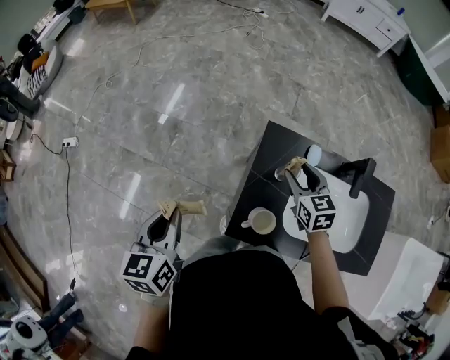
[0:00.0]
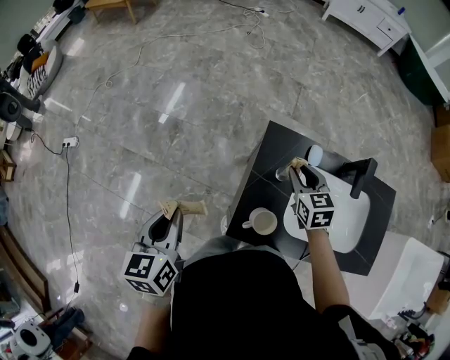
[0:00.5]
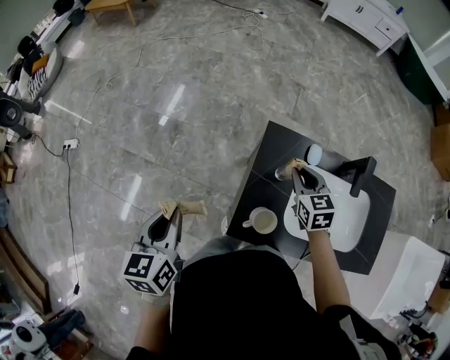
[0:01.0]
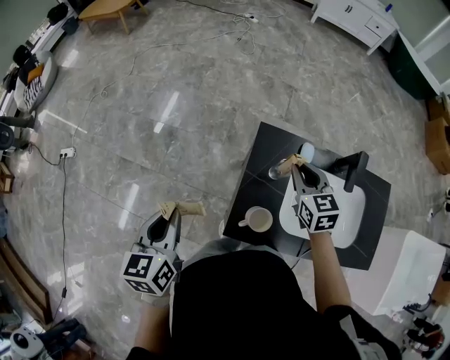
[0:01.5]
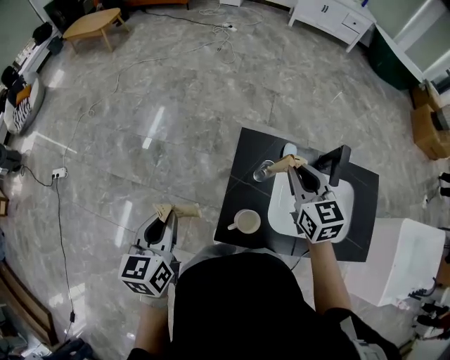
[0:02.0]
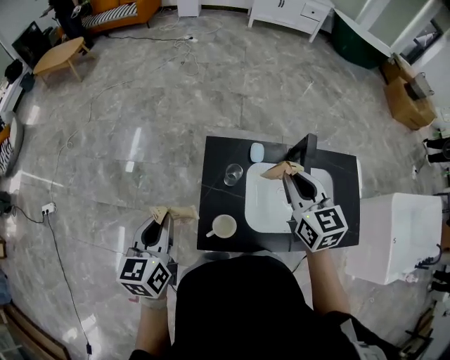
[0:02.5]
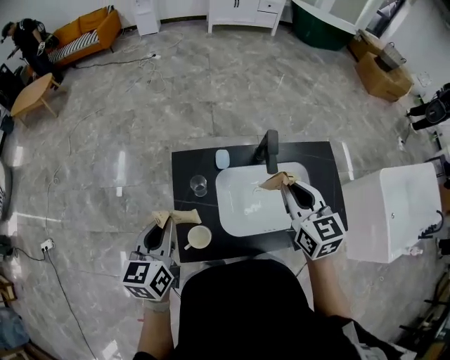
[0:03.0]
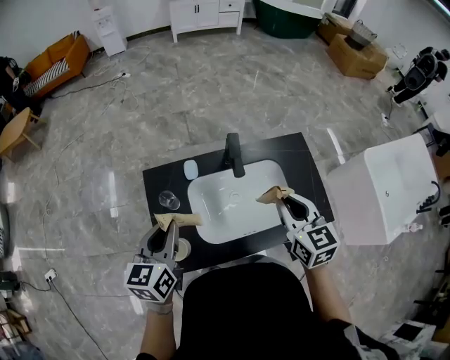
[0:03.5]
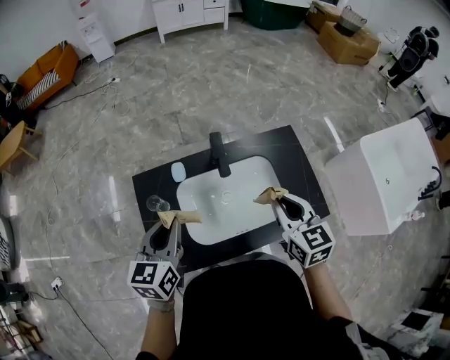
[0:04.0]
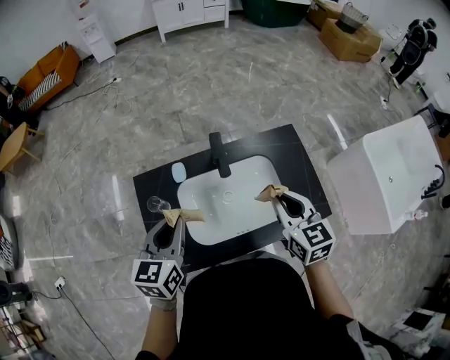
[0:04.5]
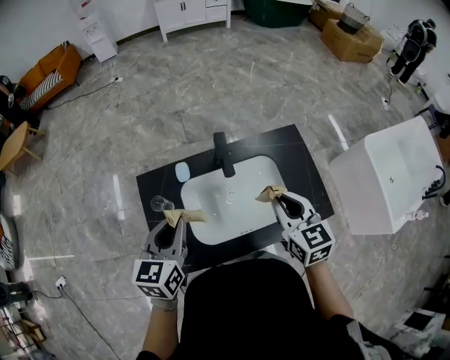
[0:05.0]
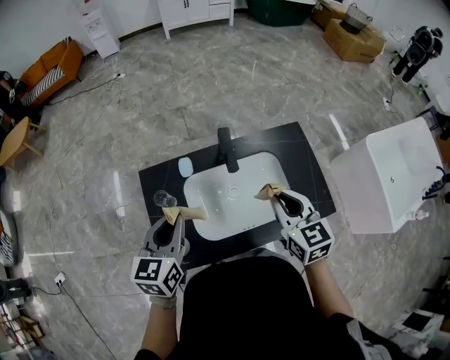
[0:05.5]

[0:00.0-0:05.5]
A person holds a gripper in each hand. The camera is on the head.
0:00.0 to 0:02.0: The right gripper goes approximately 15 cm upward, and closes its fingers.
0:02.0 to 0:03.5: The two grippers go about 30 cm to the right. The left gripper changes its angle by approximately 30 degrees. Meanwhile the right gripper changes its angle by about 20 degrees.

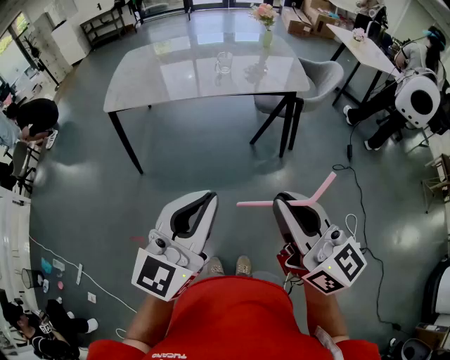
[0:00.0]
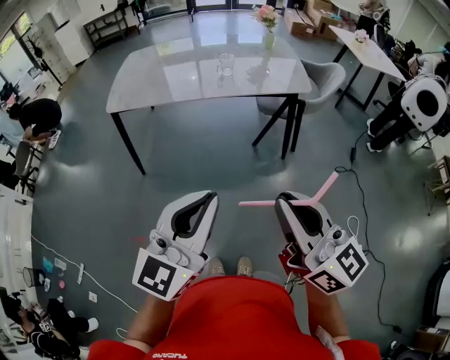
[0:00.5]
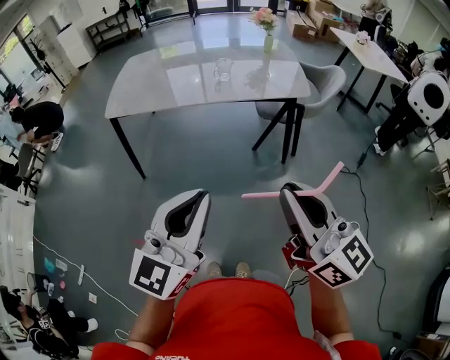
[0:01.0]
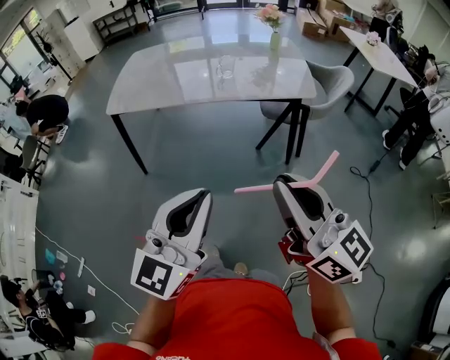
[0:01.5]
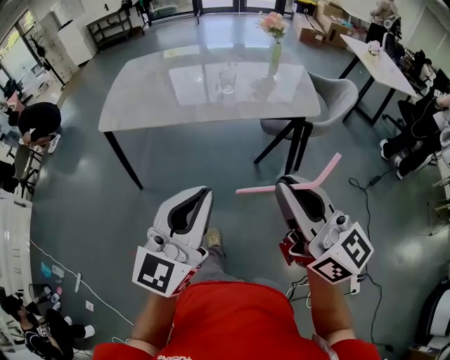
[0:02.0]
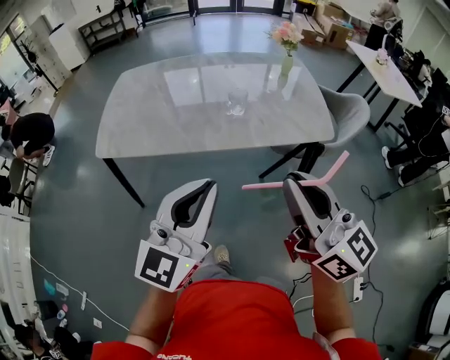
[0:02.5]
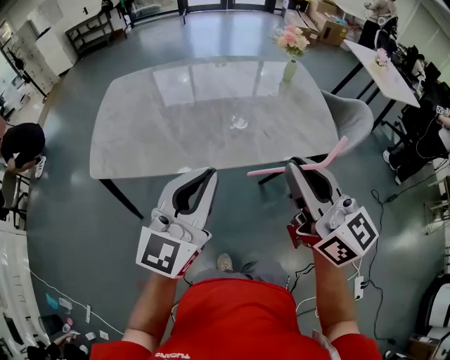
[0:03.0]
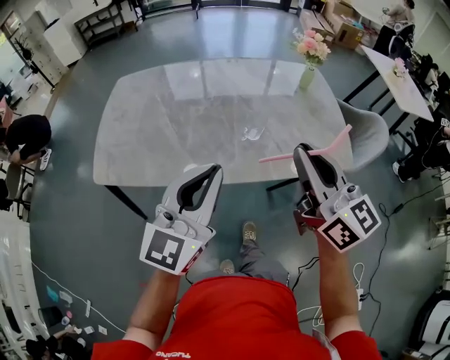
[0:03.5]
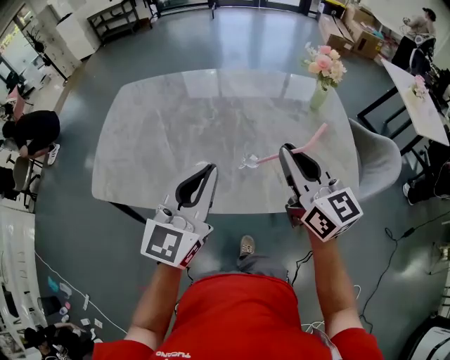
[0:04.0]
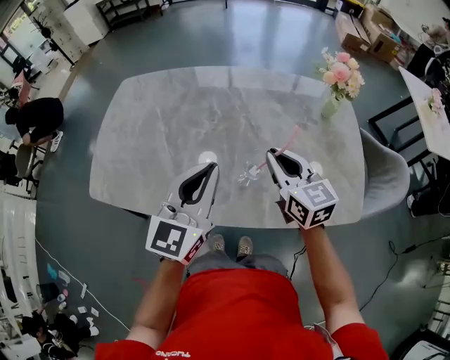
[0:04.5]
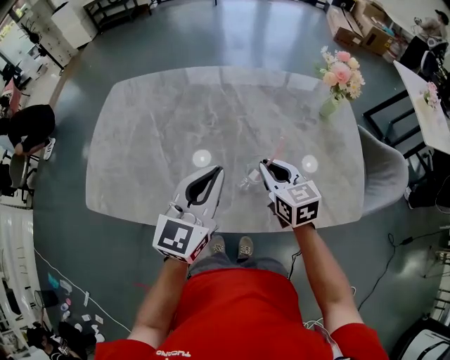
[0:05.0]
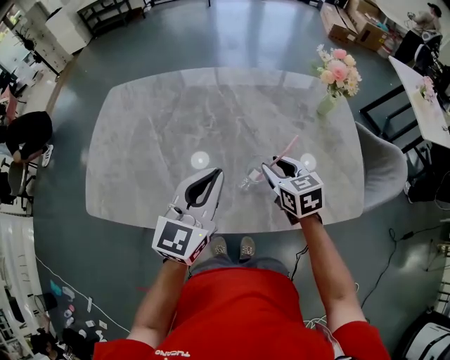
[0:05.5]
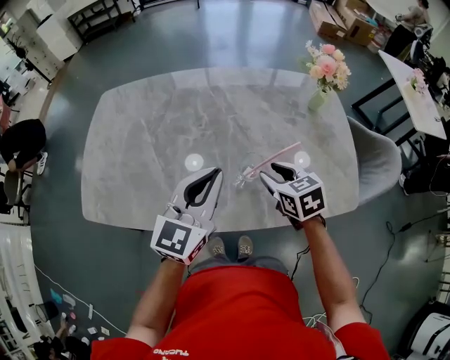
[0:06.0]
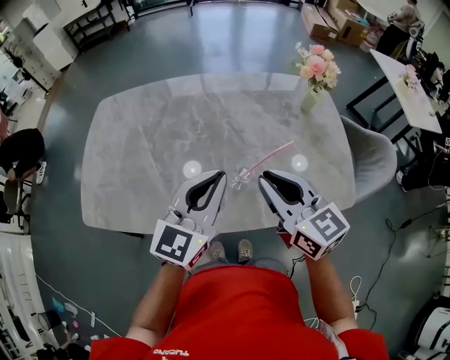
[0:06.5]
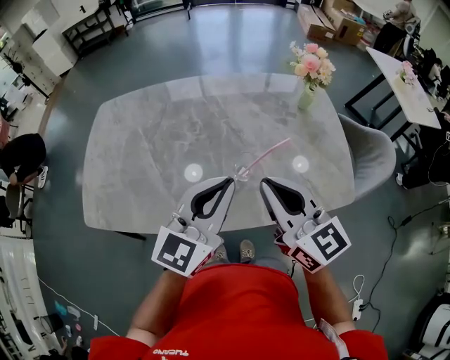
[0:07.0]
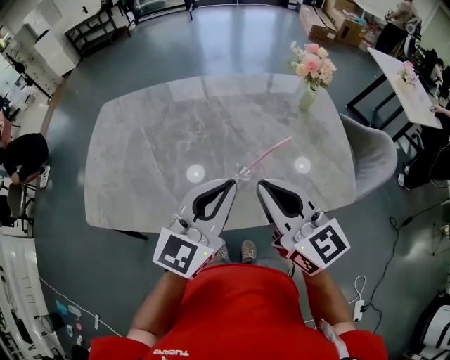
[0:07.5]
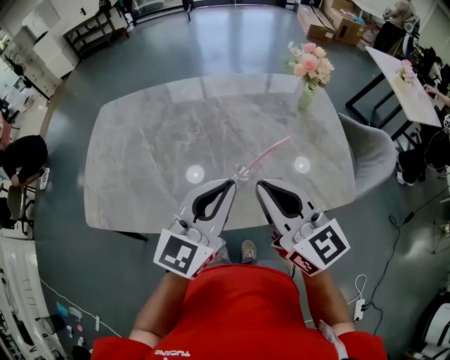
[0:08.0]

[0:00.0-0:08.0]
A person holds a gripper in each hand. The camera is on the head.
0:00.0 to 0:02.0: The two grippers go roughly 15 cm forward.
0:02.0 to 0:04.0: The pair of grippers is taken forward, some 50 cm.
0:04.0 to 0:06.0: The left gripper goes some 10 cm forward and downward; the right gripper goes roughly 20 cm downward and forward, tips its fingers downward by some 40 degrees, and opens up.
0:06.0 to 0:08.0: The left gripper shifts roughly 10 cm backward and upward; the right gripper goes roughly 20 cm upward and backward, tilts its fingers about 40 degrees upward, and closes up.

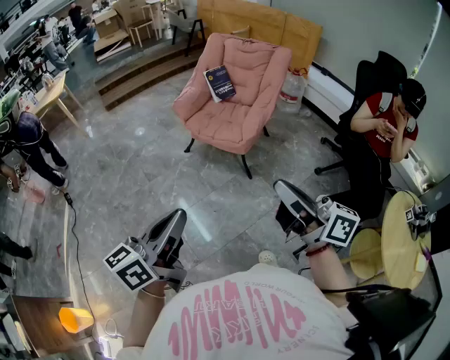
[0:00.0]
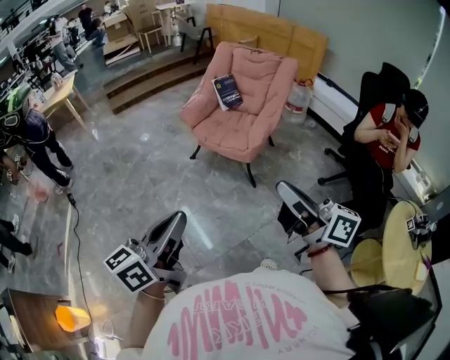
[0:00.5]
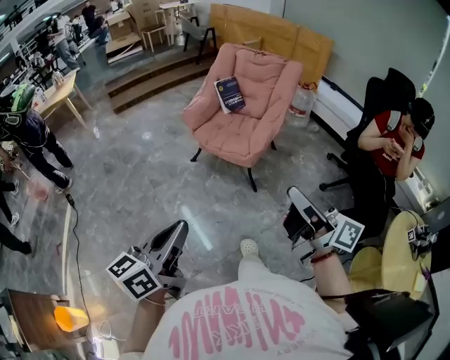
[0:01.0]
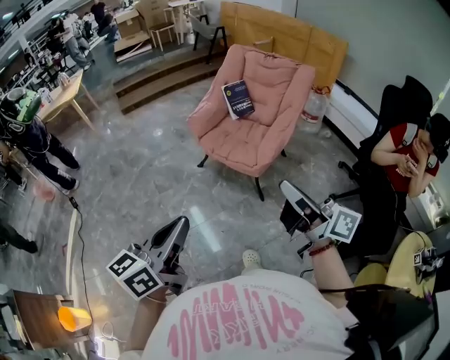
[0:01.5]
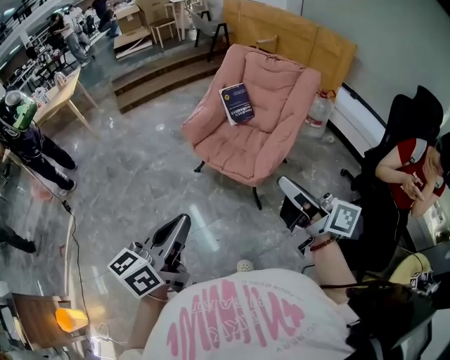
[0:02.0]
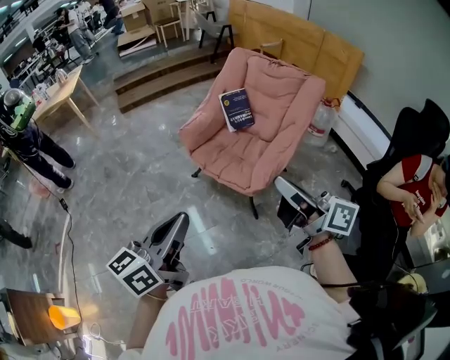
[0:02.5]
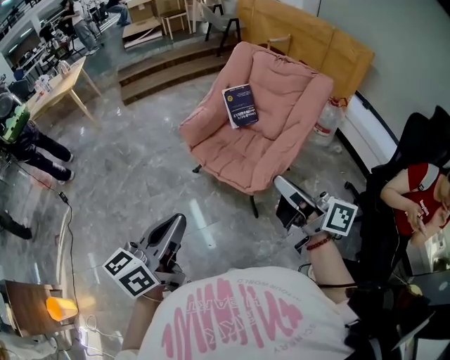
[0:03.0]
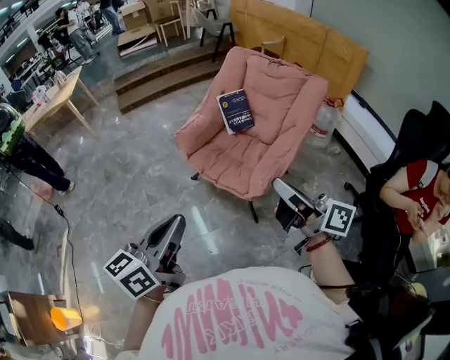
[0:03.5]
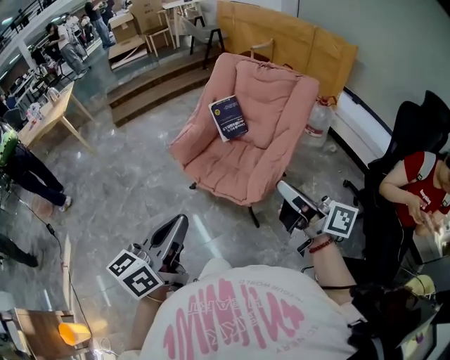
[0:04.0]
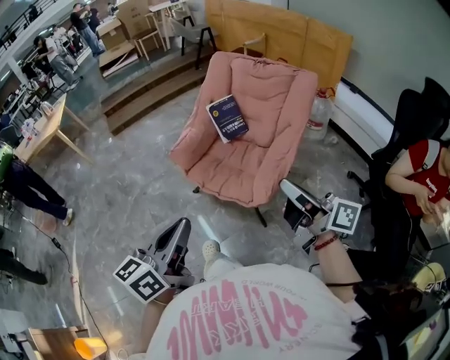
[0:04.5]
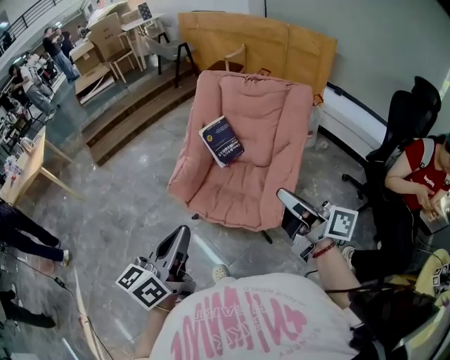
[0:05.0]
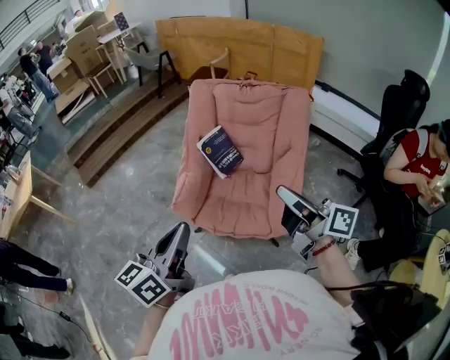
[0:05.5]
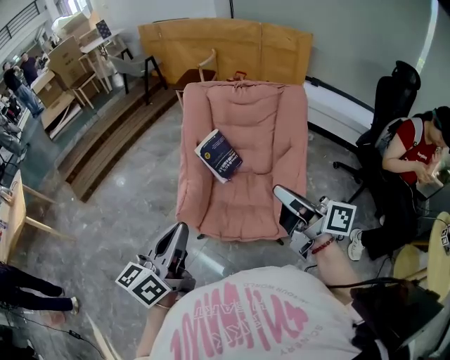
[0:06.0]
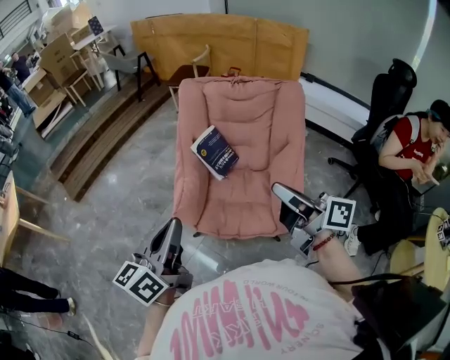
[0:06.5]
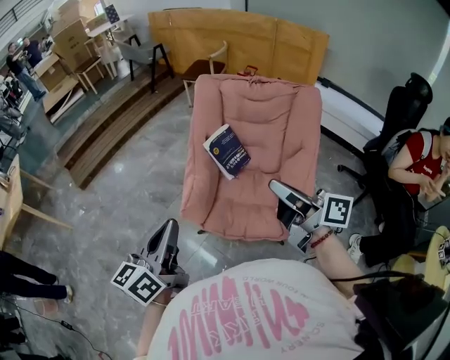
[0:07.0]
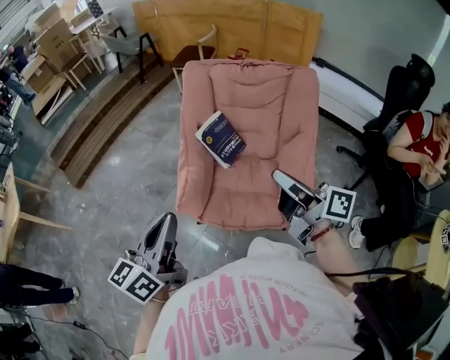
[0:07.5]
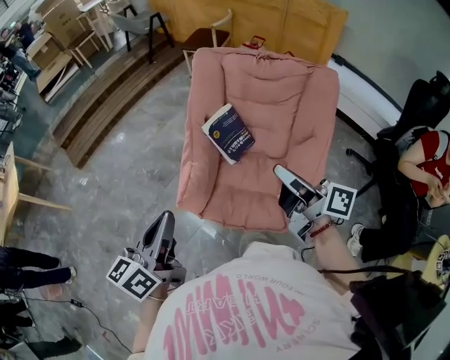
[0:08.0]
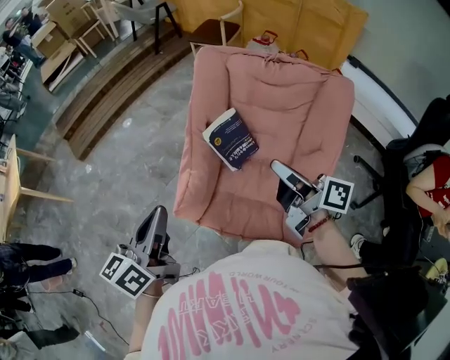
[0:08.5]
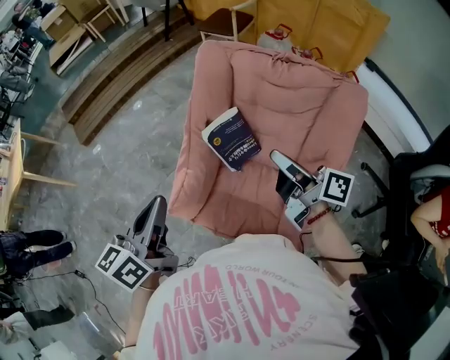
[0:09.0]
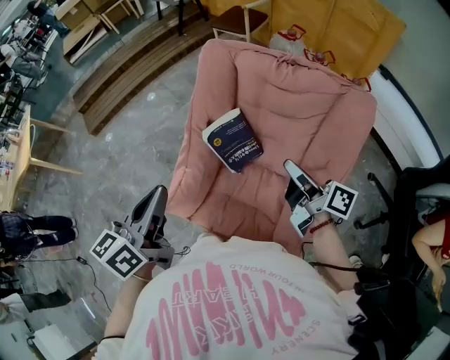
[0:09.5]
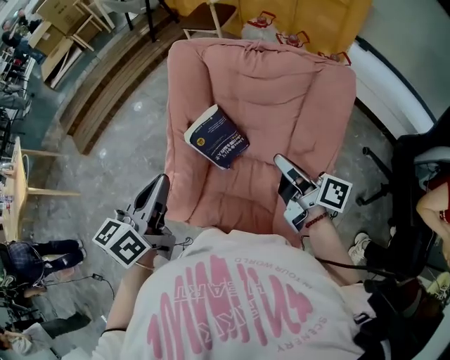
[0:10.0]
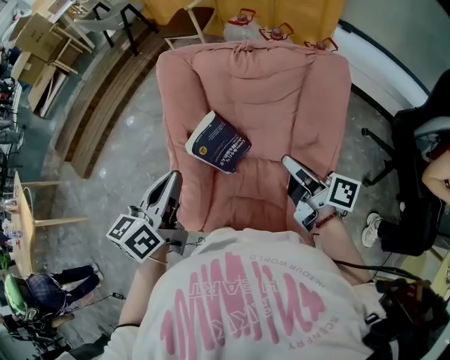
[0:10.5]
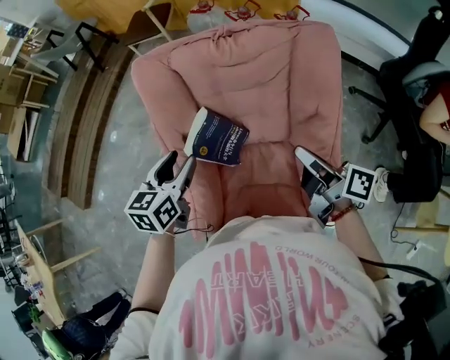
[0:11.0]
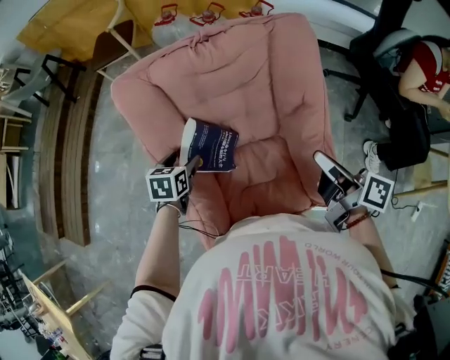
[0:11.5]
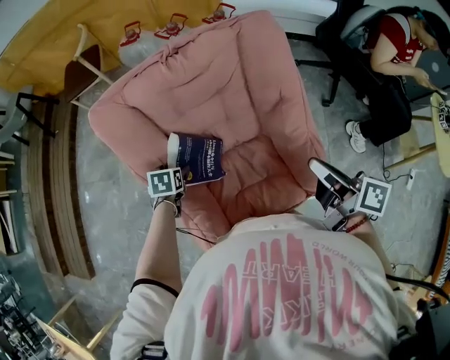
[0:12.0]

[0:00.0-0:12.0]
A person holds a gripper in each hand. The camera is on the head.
0:00.0 to 0:02.0: The grippers both shift forward by some 20 cm.
0:02.0 to 0:04.0: The two grippers go approximately 10 cm forward and to the right.
0:04.0 to 0:06.0: The grippers both shift forward and to the left by roughly 25 cm. The right gripper swivels roughly 20 degrees.
0:06.0 to 0:08.0: The left gripper goes roughly 10 cm forward, while the right gripper heads forward and downward, covering some 15 cm.
0:08.0 to 0:10.0: The right gripper heads forward, to the right and downward, covering roughly 20 cm, while the left gripper goes some 20 cm forward and to the right.
0:10.0 to 0:12.0: The right gripper ends up about 10 cm from where it was, and swivels roughly 40 degrees; the left gripper is displaced downward by about 35 cm, tips its fingers downward by roughly 50 degrees, and opens.

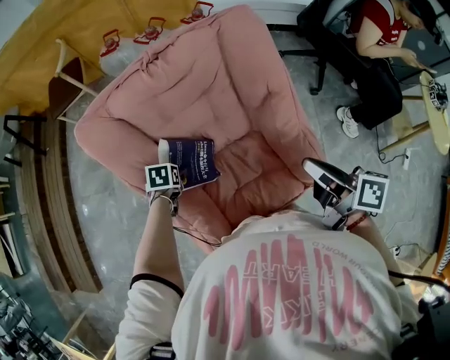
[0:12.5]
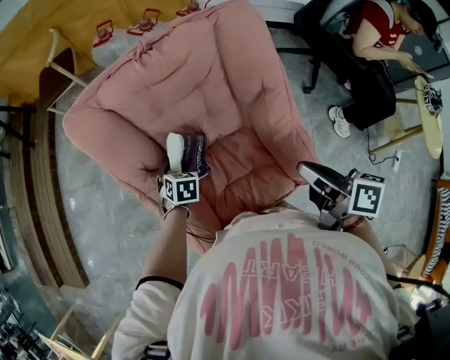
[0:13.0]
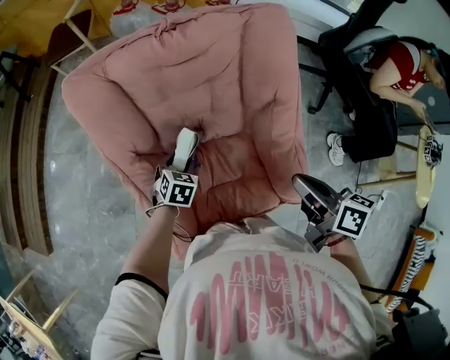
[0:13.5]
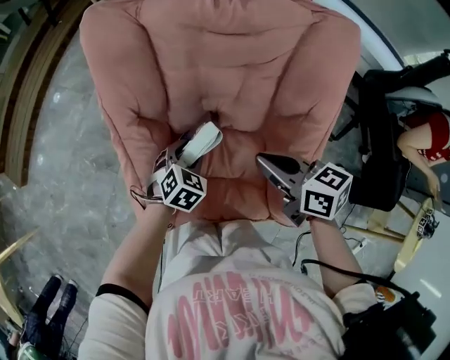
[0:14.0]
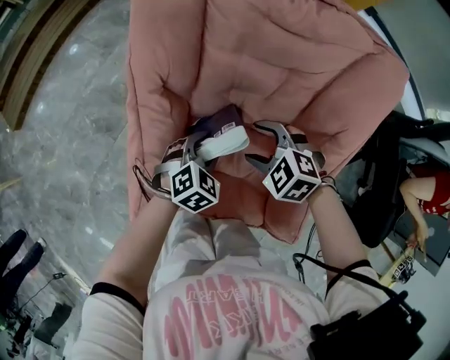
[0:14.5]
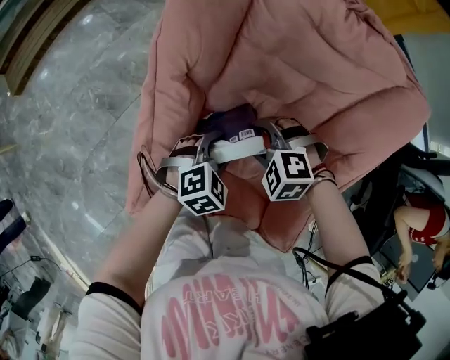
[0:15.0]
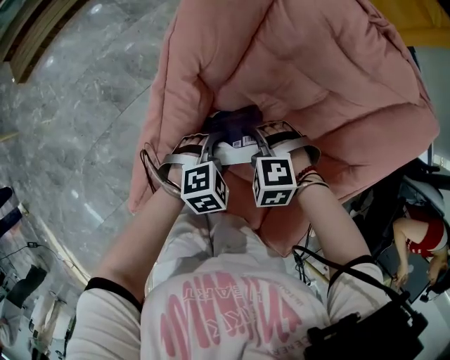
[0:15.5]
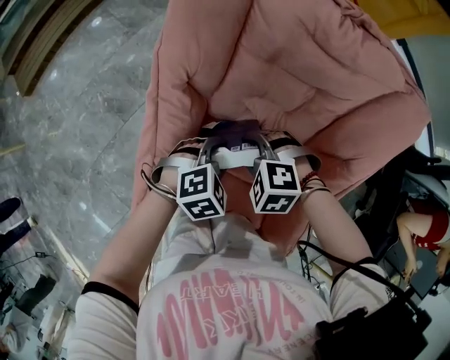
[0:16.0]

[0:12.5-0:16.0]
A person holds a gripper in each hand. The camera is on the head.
0:12.5 to 0:14.5: The right gripper heads downward, covering about 20 cm, rolls counterclockwise, seen from behind, by about 110 degrees, and opens its fingers. Meanwhile the left gripper changes place by some 15 cm, rotates some 30 degrees, and closes its fingers.
0:14.5 to 0:16.0: The right gripper moves roughly 5 cm, and swivels some 20 degrees.
